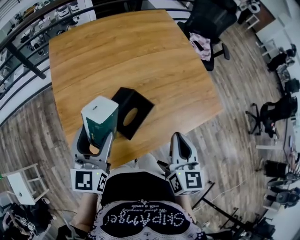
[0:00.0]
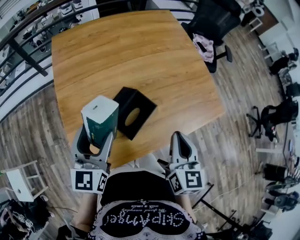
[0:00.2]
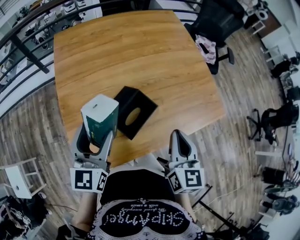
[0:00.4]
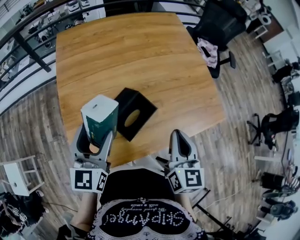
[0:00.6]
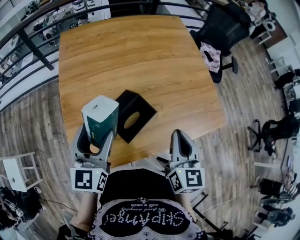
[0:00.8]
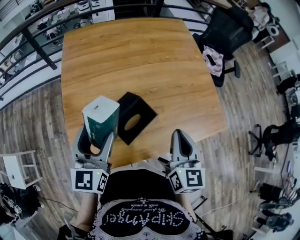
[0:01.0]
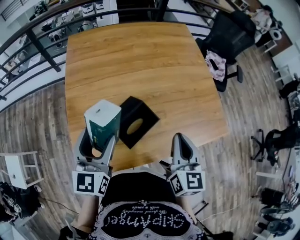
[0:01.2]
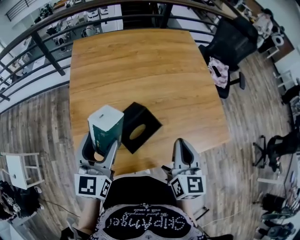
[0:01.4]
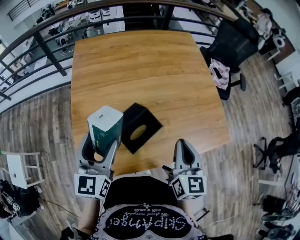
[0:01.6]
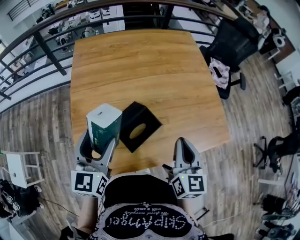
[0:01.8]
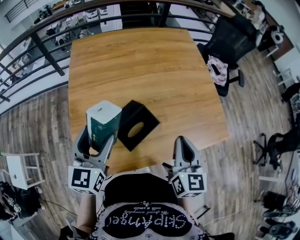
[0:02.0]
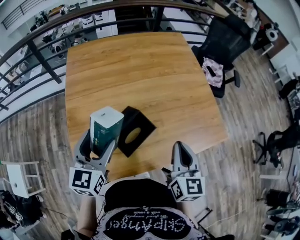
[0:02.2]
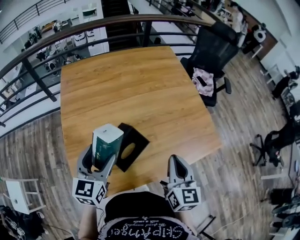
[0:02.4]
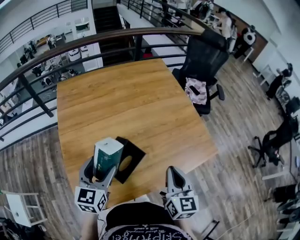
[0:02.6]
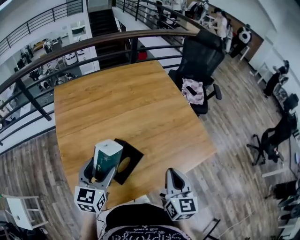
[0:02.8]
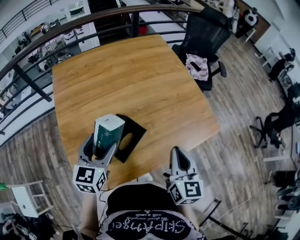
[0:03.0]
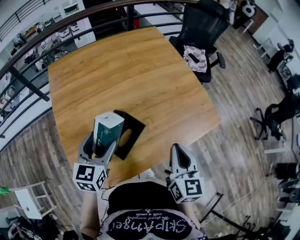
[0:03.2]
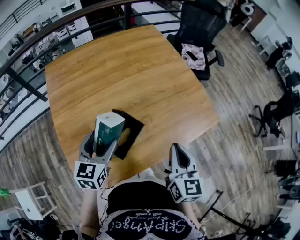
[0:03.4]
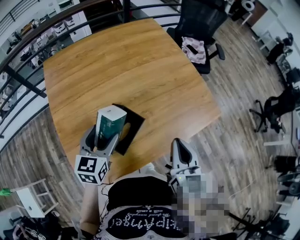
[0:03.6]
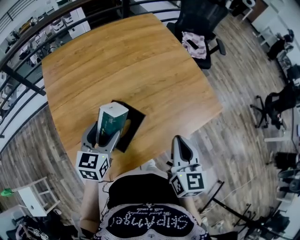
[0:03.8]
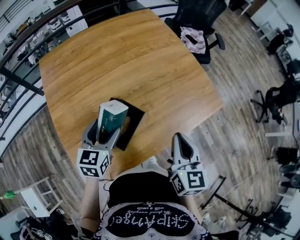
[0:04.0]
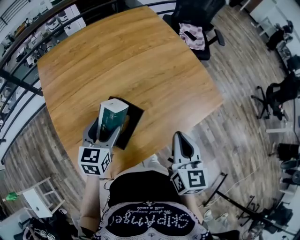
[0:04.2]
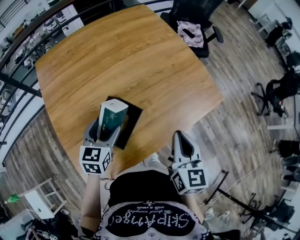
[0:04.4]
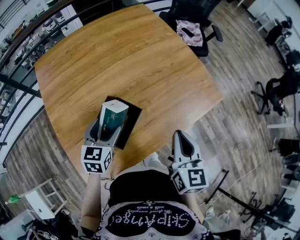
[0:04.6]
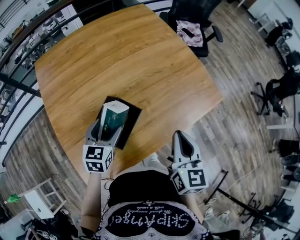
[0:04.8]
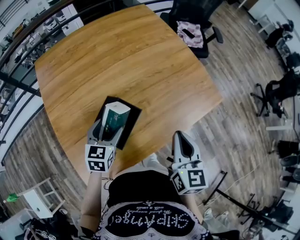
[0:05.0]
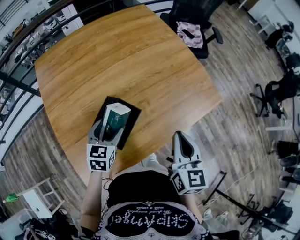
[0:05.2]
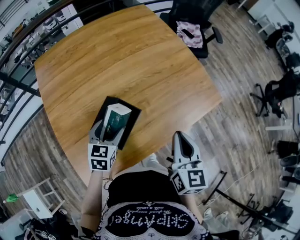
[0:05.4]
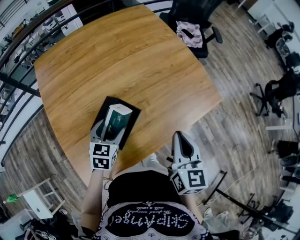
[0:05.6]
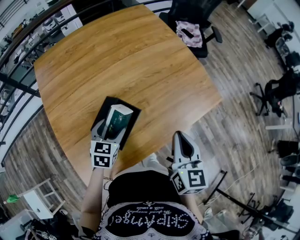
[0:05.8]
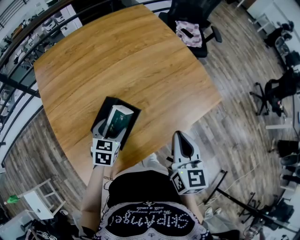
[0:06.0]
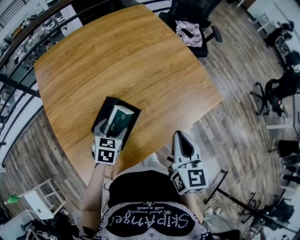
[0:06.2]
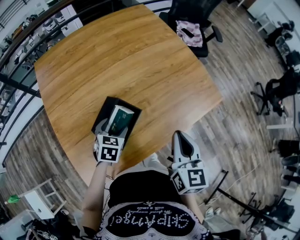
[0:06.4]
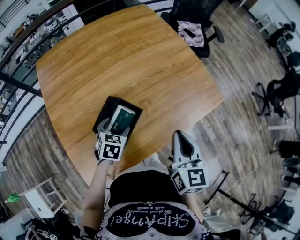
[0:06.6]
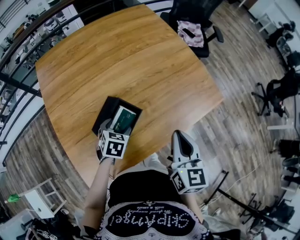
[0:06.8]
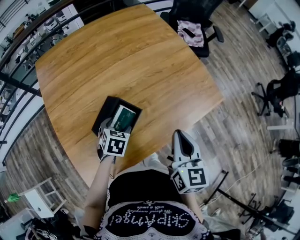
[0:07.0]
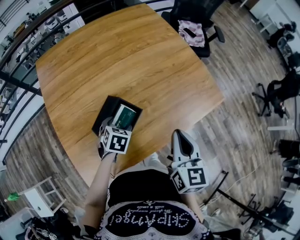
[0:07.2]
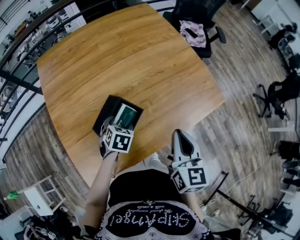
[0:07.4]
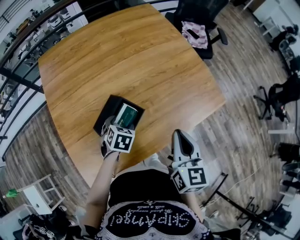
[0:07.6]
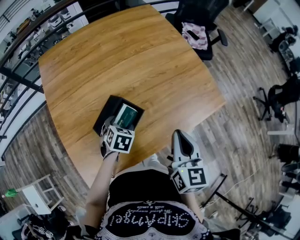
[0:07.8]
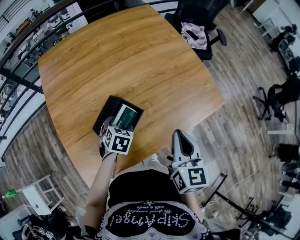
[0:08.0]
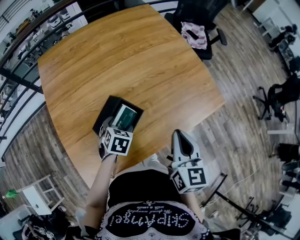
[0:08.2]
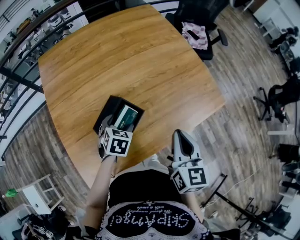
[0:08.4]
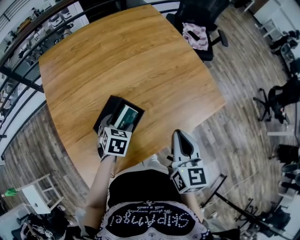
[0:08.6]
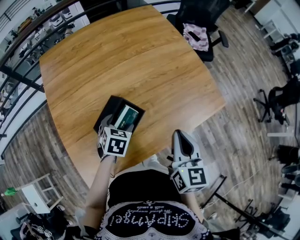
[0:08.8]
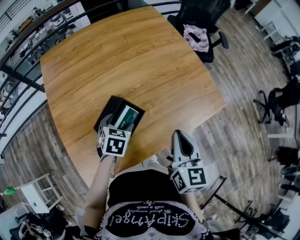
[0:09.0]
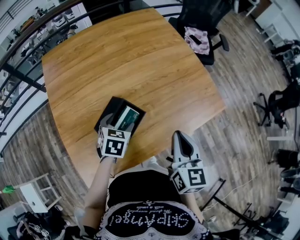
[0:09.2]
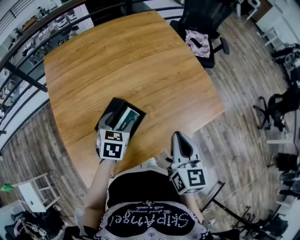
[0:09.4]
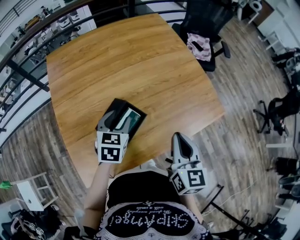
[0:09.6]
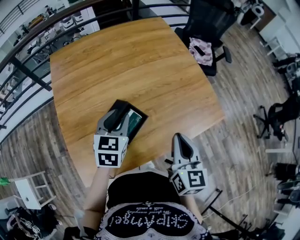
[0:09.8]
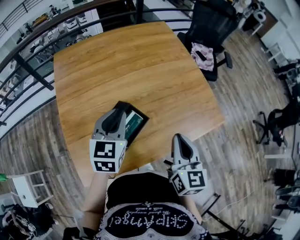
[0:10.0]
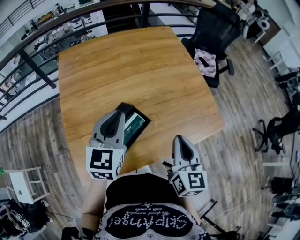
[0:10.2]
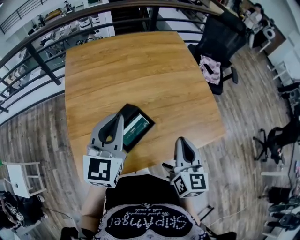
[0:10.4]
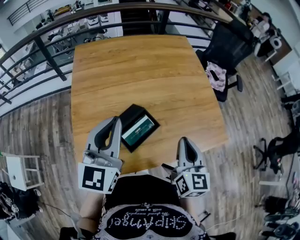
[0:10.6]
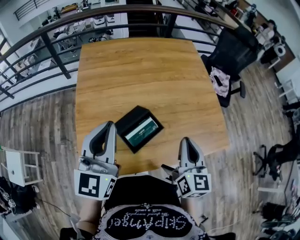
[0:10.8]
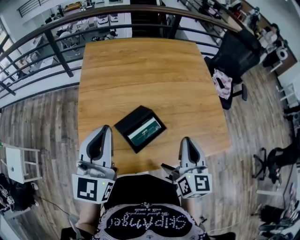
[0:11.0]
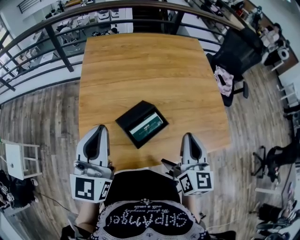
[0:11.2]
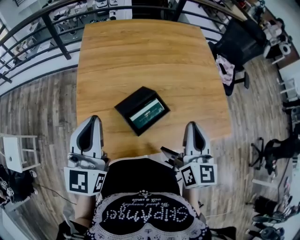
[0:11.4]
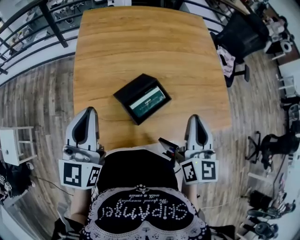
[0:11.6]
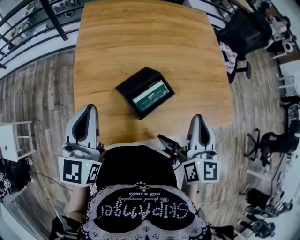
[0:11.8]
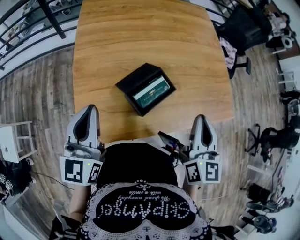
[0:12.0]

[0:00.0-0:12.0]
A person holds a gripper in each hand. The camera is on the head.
0:00.0 to 0:01.6: The right gripper moves forward, roughly 5 cm.
0:01.6 to 0:03.0: The left gripper changes place by roughly 5 cm, and rotates some 20 degrees, while the right gripper changes place by approximately 5 cm.
0:03.0 to 0:04.4: The left gripper is displaced downward by approximately 10 cm.
0:04.4 to 0:06.0: The left gripper travels downward by roughly 10 cm.
0:06.0 to 0:09.0: The grippers move only a little.
0:09.0 to 0:10.4: The left gripper moves upward, roughly 25 cm, tips its fingers upward by roughly 50 degrees, and closes its fingers.
0:10.4 to 0:12.0: The left gripper travels to the left and backward by about 20 cm, while the right gripper heads to the left, covering some 5 cm.

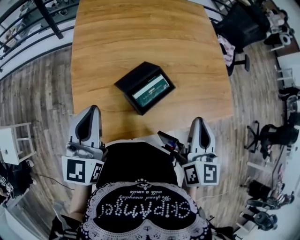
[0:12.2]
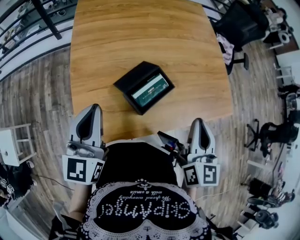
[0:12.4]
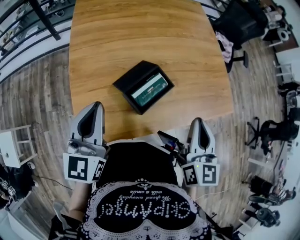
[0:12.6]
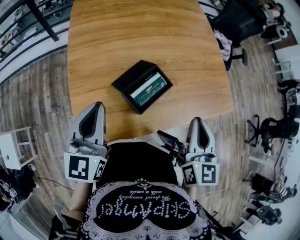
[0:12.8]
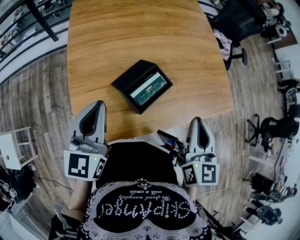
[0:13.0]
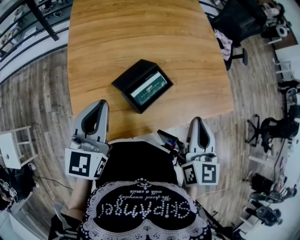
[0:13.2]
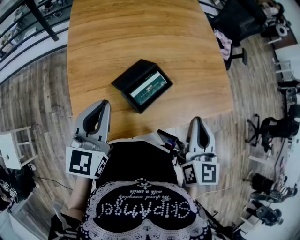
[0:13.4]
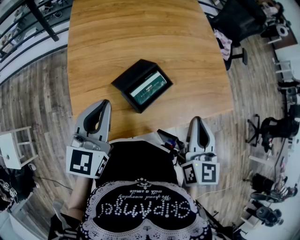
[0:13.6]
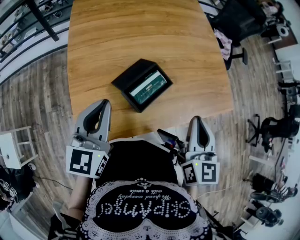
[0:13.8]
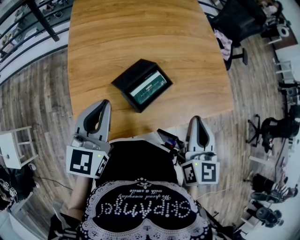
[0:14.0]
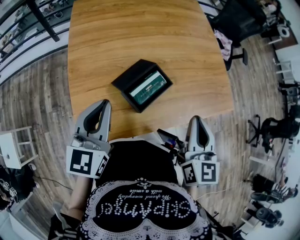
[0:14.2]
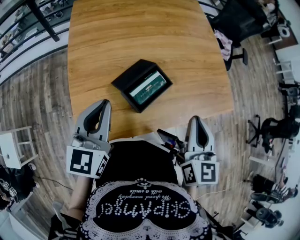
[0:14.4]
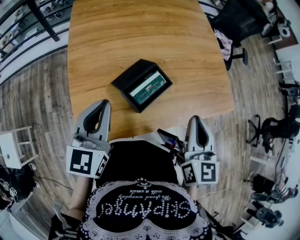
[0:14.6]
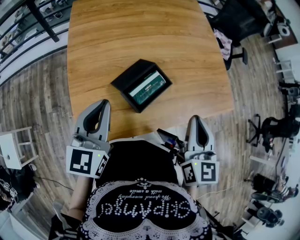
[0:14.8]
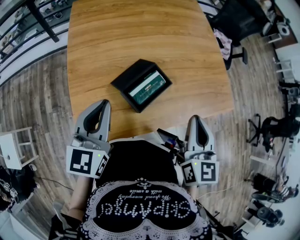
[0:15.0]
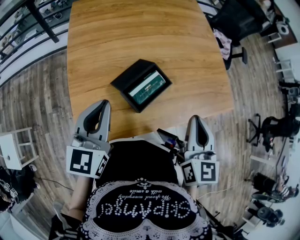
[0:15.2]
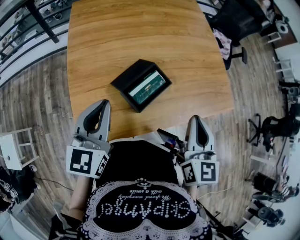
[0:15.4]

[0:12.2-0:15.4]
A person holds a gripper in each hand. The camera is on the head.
0:12.2 to 0:13.8: There are only small adjustments of the grippers.
0:13.8 to 0:15.4: The two grippers keep their place.

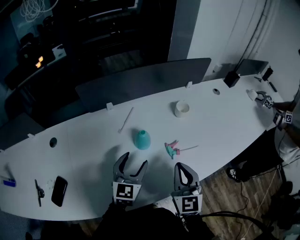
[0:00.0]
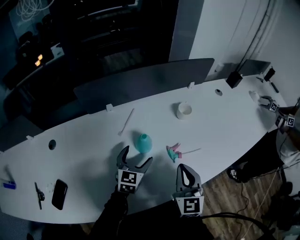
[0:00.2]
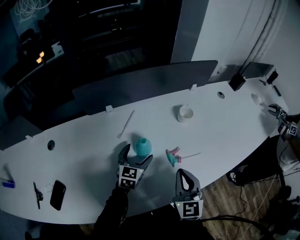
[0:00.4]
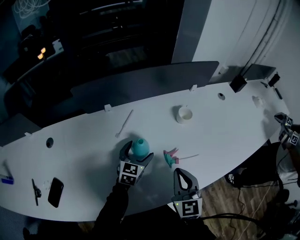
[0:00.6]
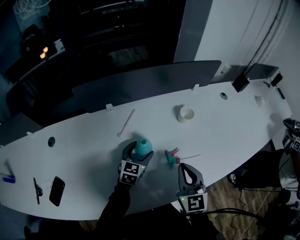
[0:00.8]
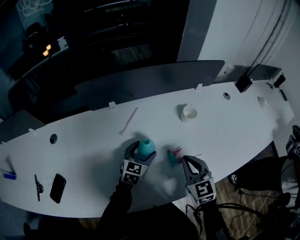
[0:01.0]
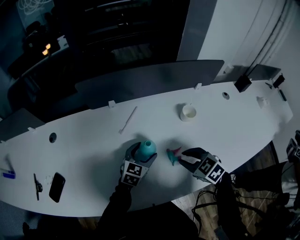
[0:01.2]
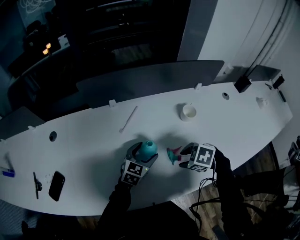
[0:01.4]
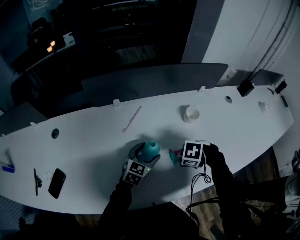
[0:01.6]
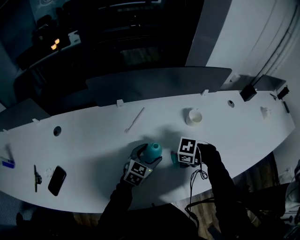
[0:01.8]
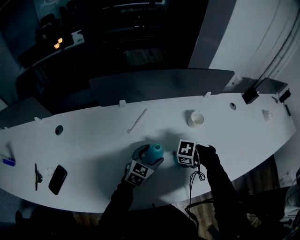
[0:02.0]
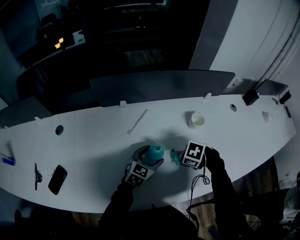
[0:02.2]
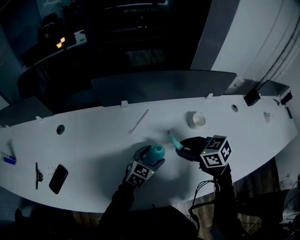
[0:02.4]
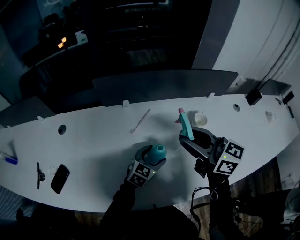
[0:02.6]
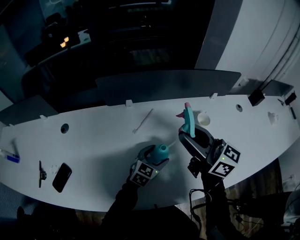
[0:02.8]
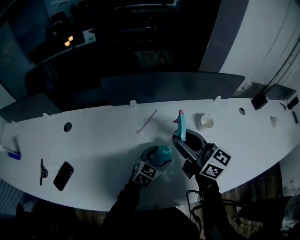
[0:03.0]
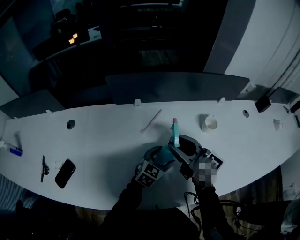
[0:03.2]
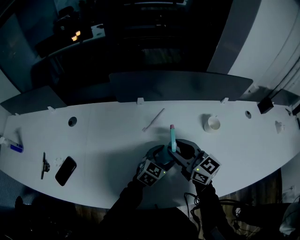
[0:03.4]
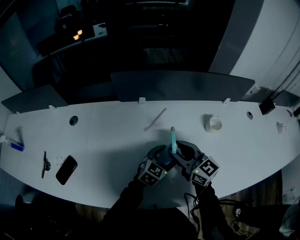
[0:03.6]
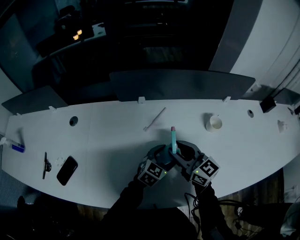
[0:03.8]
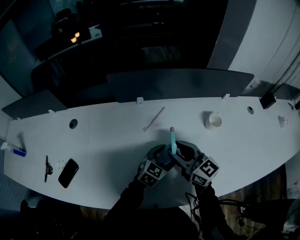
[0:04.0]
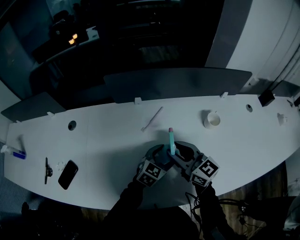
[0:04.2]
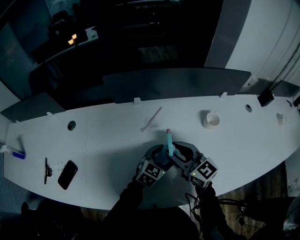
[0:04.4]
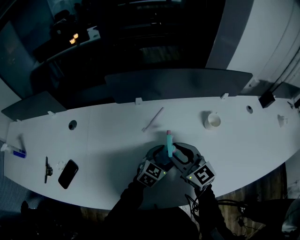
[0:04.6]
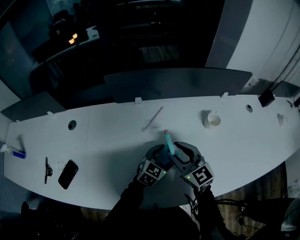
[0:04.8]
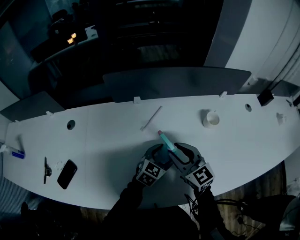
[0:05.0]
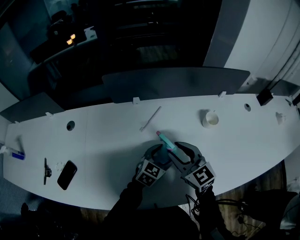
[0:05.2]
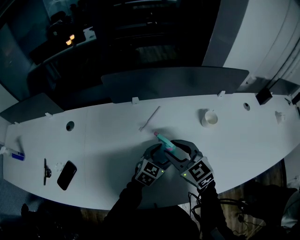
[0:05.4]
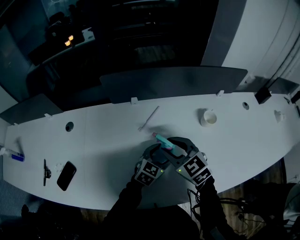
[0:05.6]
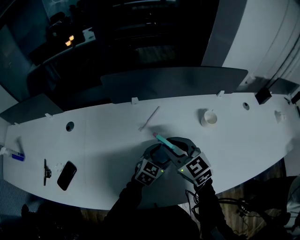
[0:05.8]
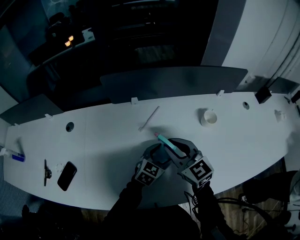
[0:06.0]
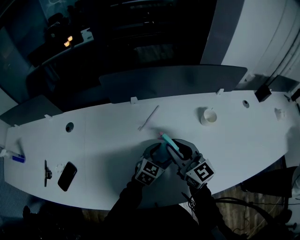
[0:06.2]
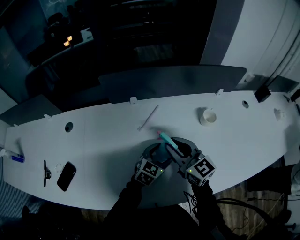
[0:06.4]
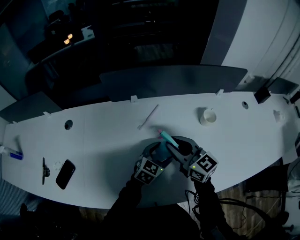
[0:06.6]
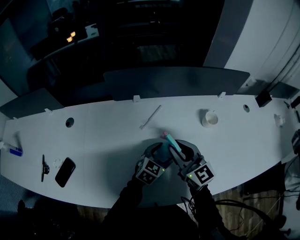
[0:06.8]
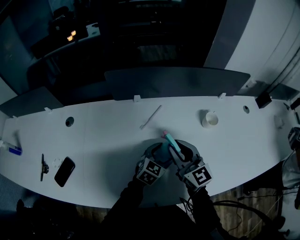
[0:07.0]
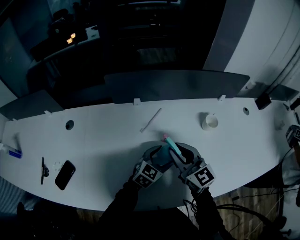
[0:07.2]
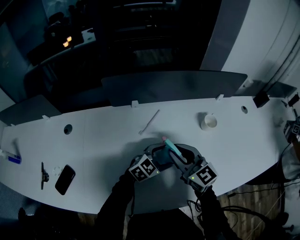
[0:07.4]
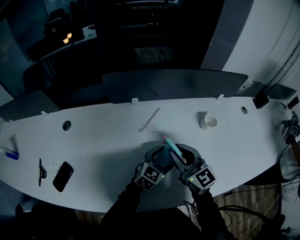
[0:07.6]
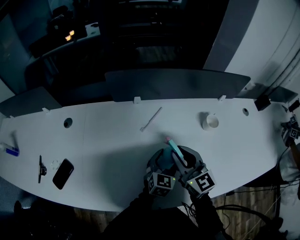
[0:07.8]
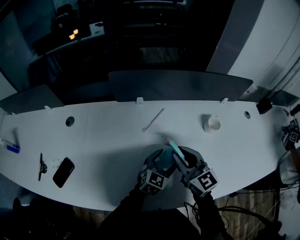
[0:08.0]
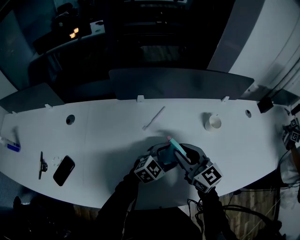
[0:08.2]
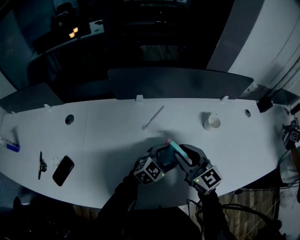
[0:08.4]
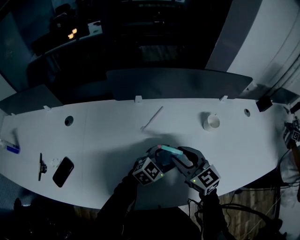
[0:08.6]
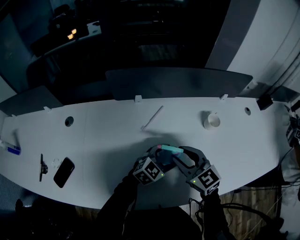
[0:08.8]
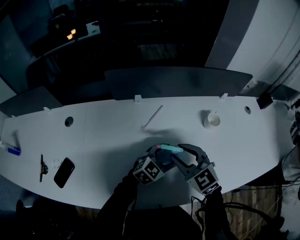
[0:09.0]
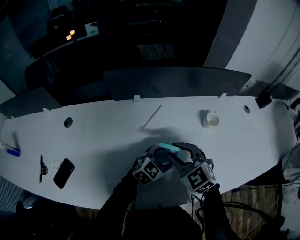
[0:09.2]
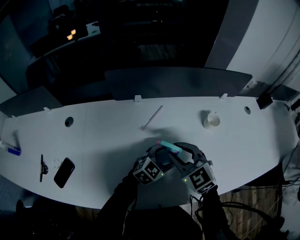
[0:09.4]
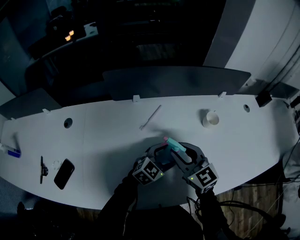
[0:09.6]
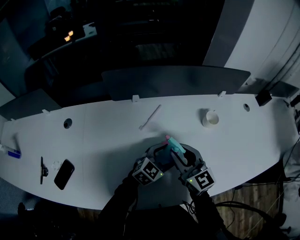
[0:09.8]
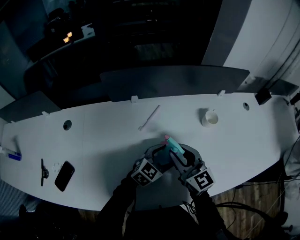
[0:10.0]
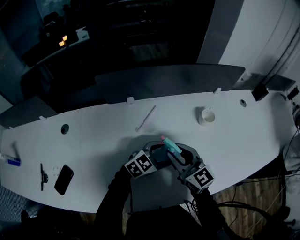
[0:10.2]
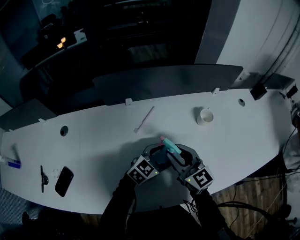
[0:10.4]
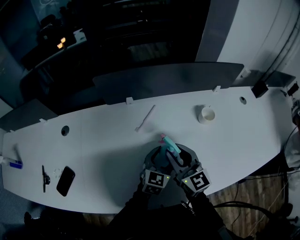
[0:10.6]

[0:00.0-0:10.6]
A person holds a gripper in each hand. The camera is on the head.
0:00.0 to 0:01.6: The right gripper is displaced downward by about 15 cm, tilts its fingers about 70 degrees downward, and opens up. The left gripper moves some 15 cm.
0:01.6 to 0:03.0: The right gripper travels upward by approximately 25 cm, and tips its fingers upward by some 80 degrees.
0:03.0 to 0:04.6: The right gripper is displaced downward by about 10 cm, and turns by approximately 30 degrees.
0:06.0 to 0:07.6: The grippers stay close to where they were, moving slightly.
0:07.6 to 0:09.0: The right gripper rotates about 30 degrees.
0:09.0 to 0:10.6: The right gripper rotates some 30 degrees. The left gripper swivels about 30 degrees.
